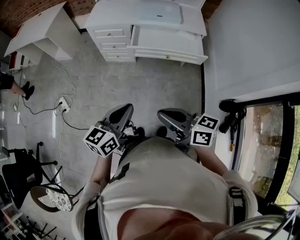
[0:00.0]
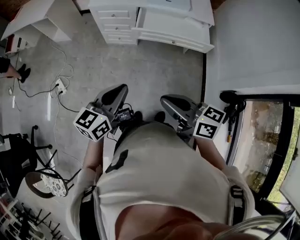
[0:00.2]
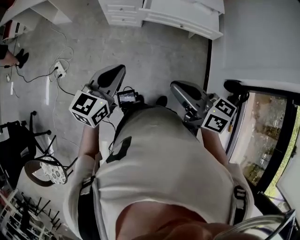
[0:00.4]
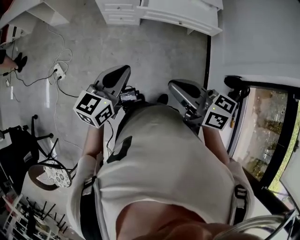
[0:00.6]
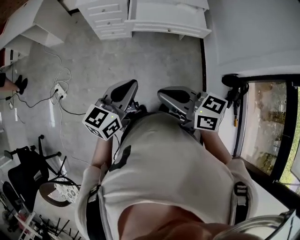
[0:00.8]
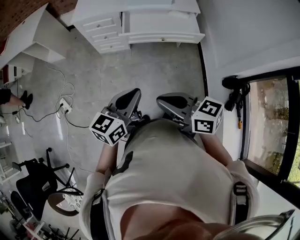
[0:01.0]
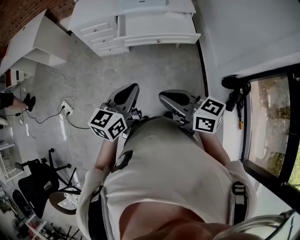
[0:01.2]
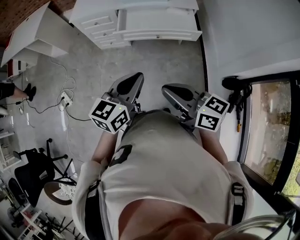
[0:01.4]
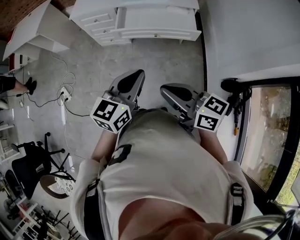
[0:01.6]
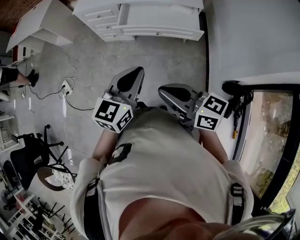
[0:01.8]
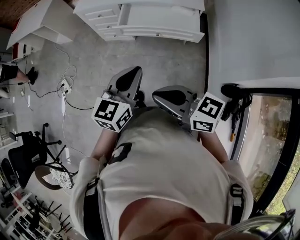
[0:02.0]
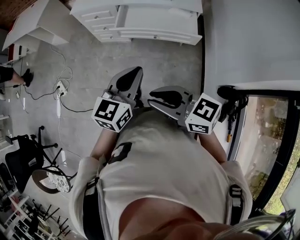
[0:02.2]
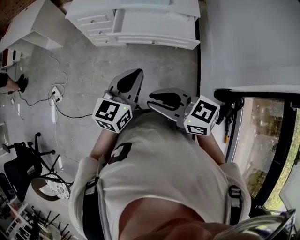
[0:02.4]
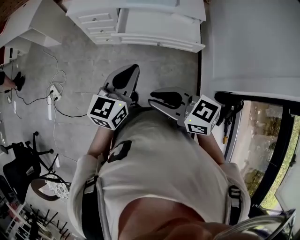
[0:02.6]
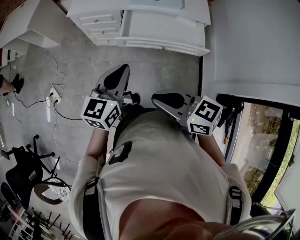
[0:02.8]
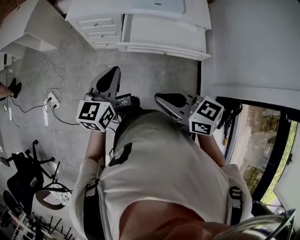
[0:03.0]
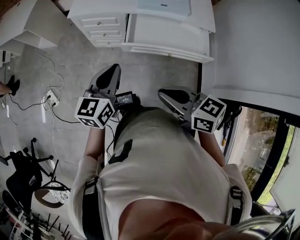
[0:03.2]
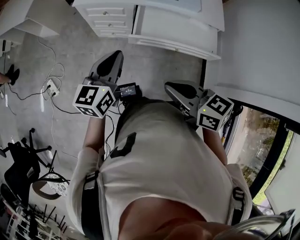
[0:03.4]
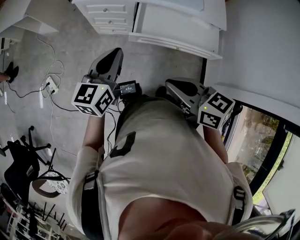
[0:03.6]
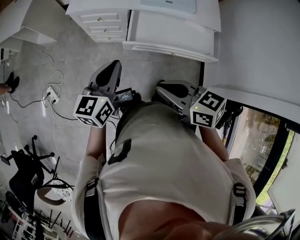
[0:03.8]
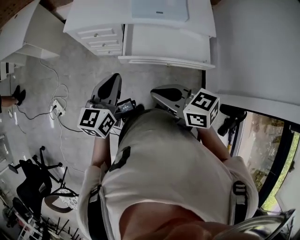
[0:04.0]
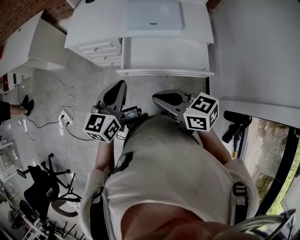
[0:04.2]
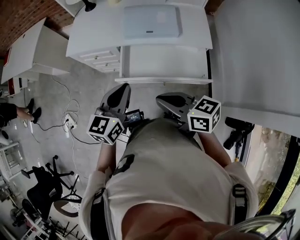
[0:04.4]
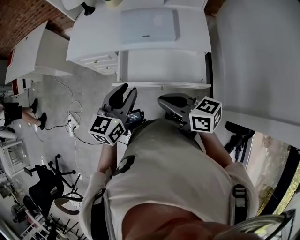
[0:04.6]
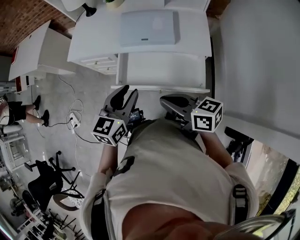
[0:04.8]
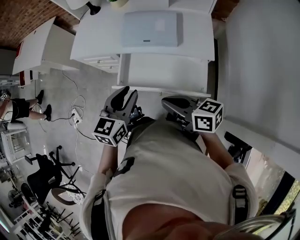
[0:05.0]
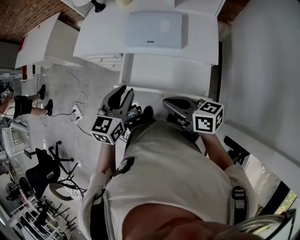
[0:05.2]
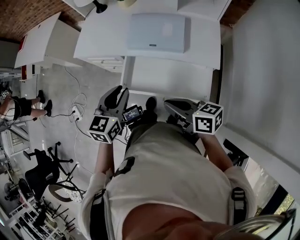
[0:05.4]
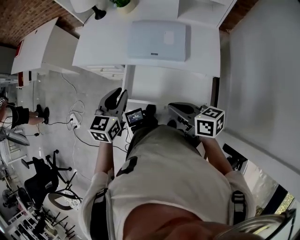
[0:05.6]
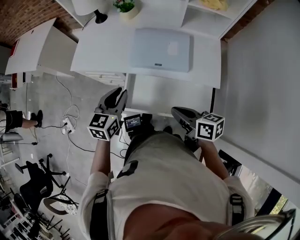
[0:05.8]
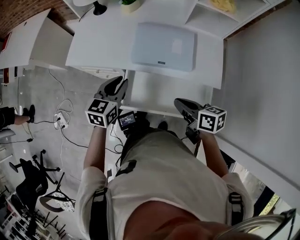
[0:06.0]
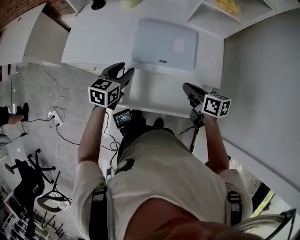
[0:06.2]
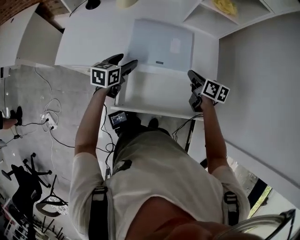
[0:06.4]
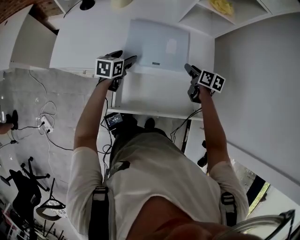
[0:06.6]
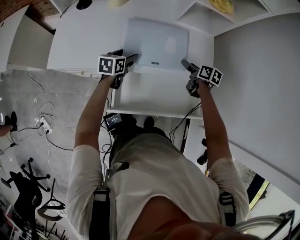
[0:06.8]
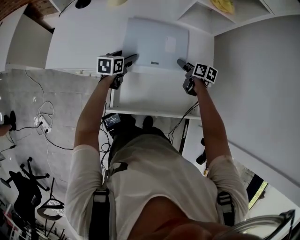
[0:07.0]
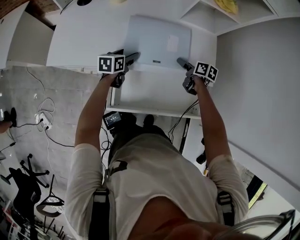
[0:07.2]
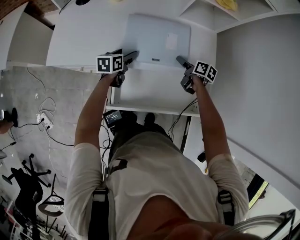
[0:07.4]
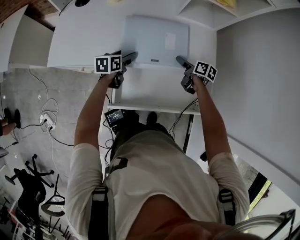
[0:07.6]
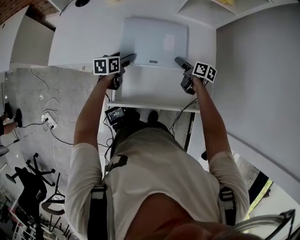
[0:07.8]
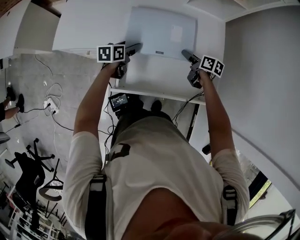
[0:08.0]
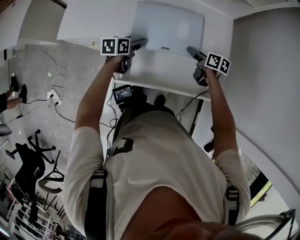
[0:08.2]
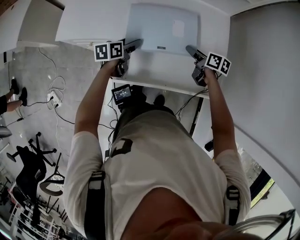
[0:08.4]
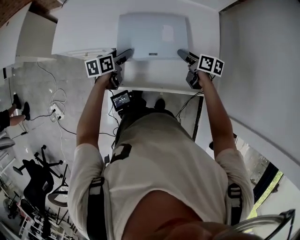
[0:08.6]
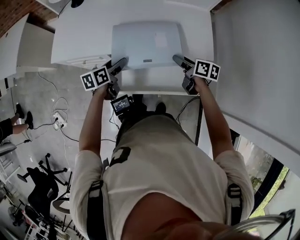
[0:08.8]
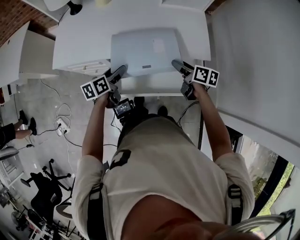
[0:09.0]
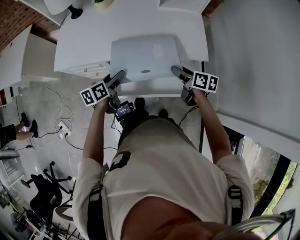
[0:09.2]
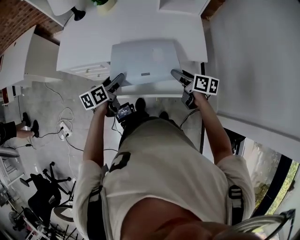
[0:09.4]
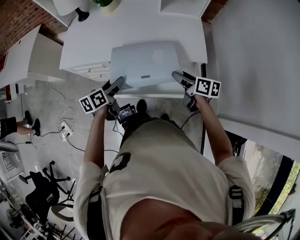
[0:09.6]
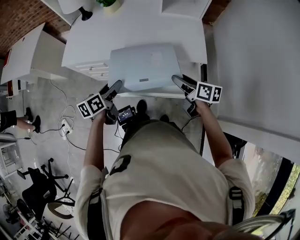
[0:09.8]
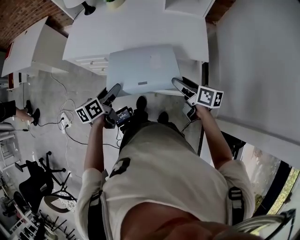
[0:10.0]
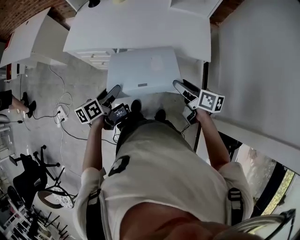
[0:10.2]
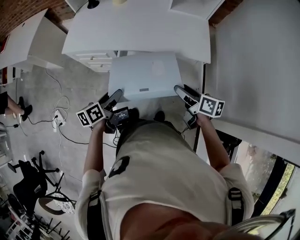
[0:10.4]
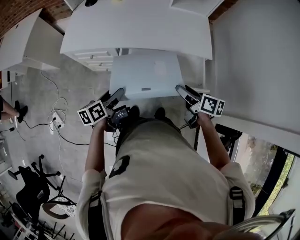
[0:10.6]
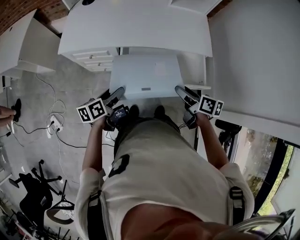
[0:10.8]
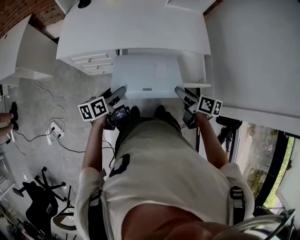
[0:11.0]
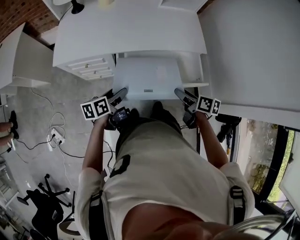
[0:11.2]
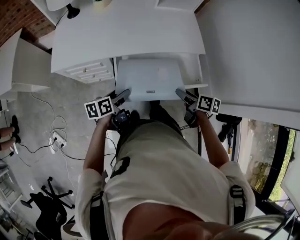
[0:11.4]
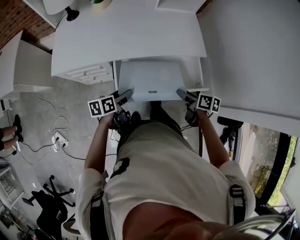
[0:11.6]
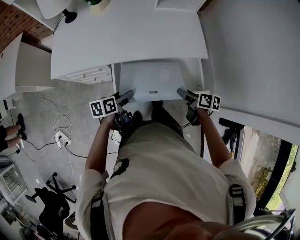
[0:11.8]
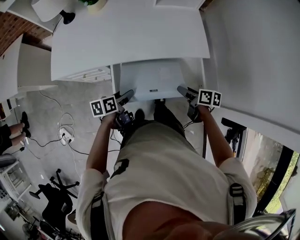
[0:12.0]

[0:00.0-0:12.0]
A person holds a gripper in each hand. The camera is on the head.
0.0 to 1.6 s: The left gripper is displaced to the right and forward by some 15 cm; the right gripper travels to the right by approximately 10 cm.
1.6 to 3.0 s: Both grippers travel together forward and to the left, some 20 cm.
3.0 to 4.4 s: The right gripper goes roughly 20 cm forward and to the right, while the left gripper heads to the right and forward, covering approximately 15 cm.
4.4 to 6.0 s: The right gripper travels forward, to the right and downward by roughly 20 cm, and rotates roughly 20 degrees. The left gripper heads forward, covering some 20 cm.
6.0 to 7.6 s: The right gripper moves forward, downward and to the right, about 25 cm, changes its angle by about 30 degrees, and opens, while the left gripper is displaced downward and forward by some 20 cm, changes its angle by approximately 30 degrees, and opens its fingers.
7.6 to 9.0 s: The grippers both shift backward and upward by approximately 15 cm.
9.0 to 10.4 s: The left gripper goes approximately 20 cm backward. The right gripper heads backward and upward, covering roughly 15 cm.
10.4 to 12.0 s: The left gripper heads forward and downward, covering roughly 15 cm, and rotates roughly 30 degrees; the right gripper travels downward by about 10 cm, and turns by some 20 degrees.

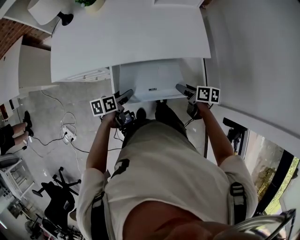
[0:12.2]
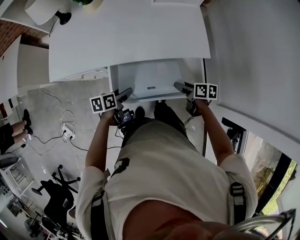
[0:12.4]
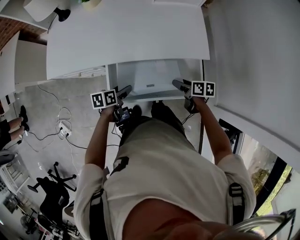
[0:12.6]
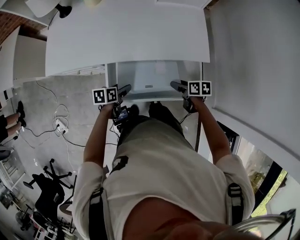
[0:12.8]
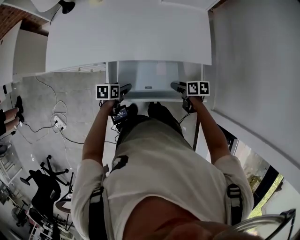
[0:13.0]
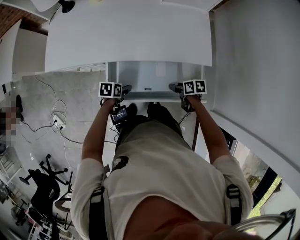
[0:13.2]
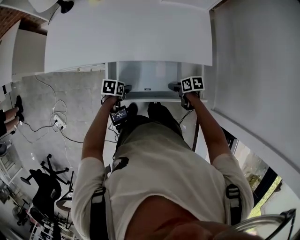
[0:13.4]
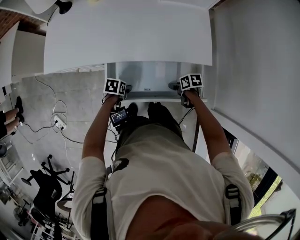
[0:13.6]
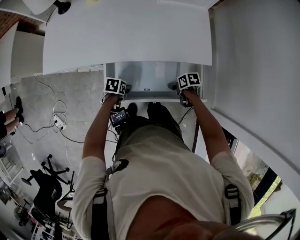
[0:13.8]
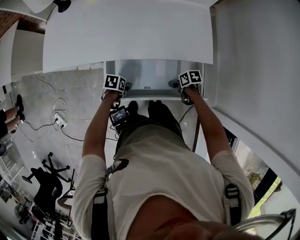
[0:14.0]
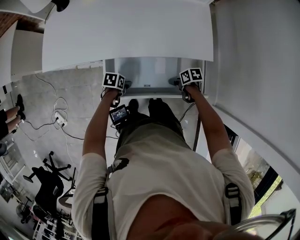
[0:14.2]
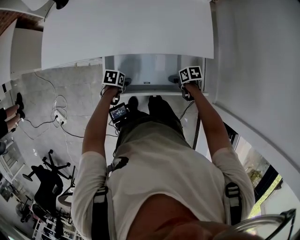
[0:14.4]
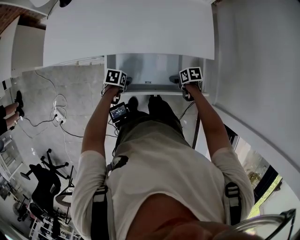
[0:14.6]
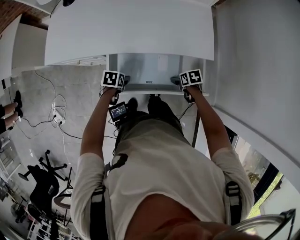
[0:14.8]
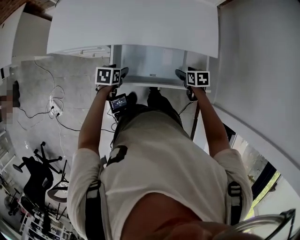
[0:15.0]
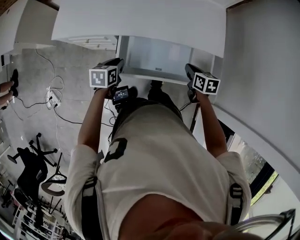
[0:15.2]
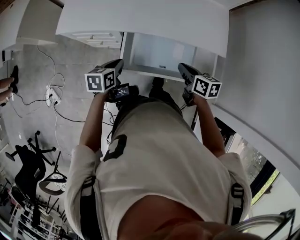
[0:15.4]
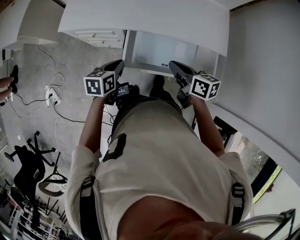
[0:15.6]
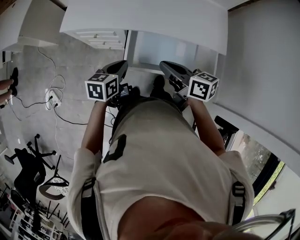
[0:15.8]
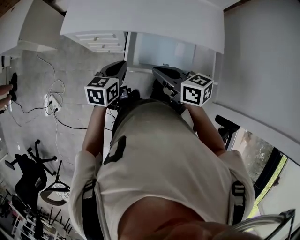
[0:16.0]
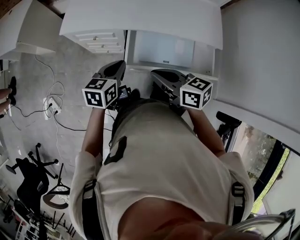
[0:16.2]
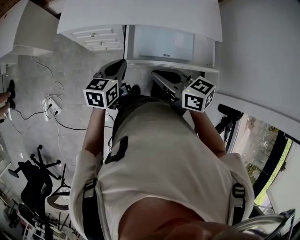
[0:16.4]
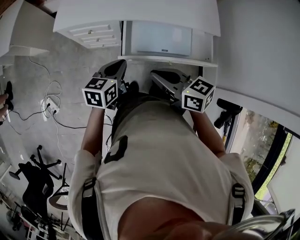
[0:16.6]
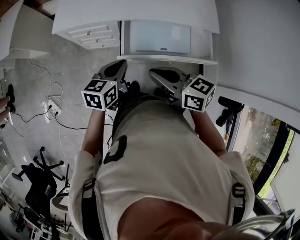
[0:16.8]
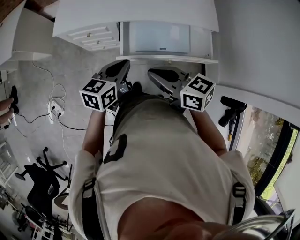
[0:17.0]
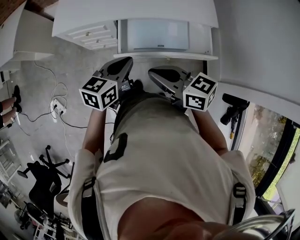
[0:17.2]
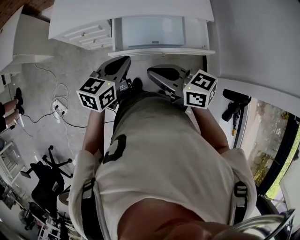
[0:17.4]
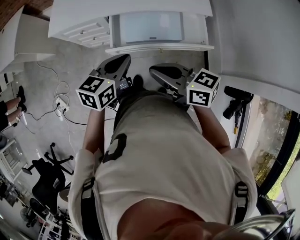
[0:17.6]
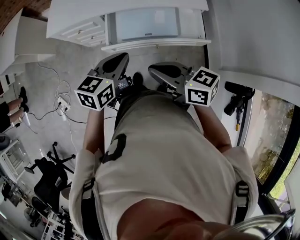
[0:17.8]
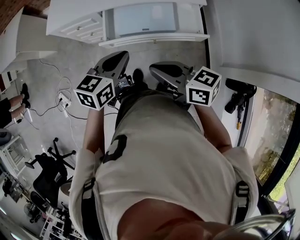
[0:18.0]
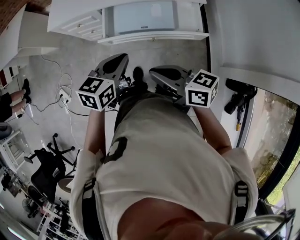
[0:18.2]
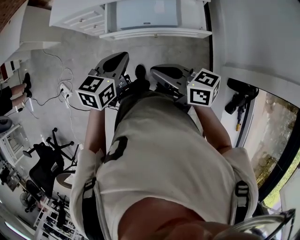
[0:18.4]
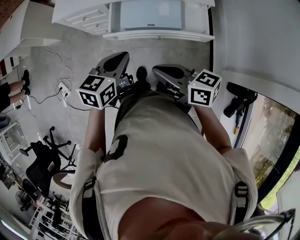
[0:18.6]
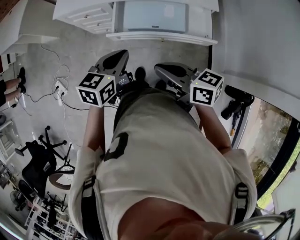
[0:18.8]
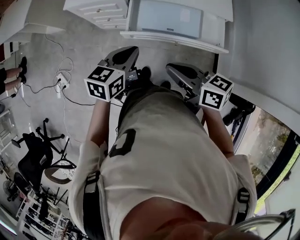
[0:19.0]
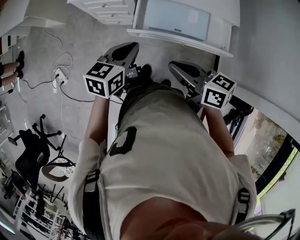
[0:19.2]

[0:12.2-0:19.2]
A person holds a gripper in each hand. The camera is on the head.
12.2 to 13.6 s: Both grippers travel together downward, about 10 cm. The left gripper swivels roughly 30 degrees, while the right gripper changes its angle by about 30 degrees.
13.6 to 15.0 s: The left gripper heads upward, covering approximately 5 cm. Meanwhile the right gripper shifts by roughly 5 cm, and changes its angle by approximately 20 degrees.
15.0 to 16.4 s: The right gripper is displaced to the left and upward by some 40 cm, tips its fingers upward by some 40 degrees, and closes its fingers; the left gripper is displaced upward, backward and to the left by approximately 20 cm, turns by approximately 30 degrees, and closes its fingers.
16.4 to 17.8 s: The left gripper travels to the right, backward and upward by roughly 15 cm. The right gripper goes approximately 15 cm backward and to the right.
17.8 to 19.2 s: The right gripper goes backward and returns, about 5 cm each way. Meanwhile the left gripper heads to the left, covering approximately 10 cm.

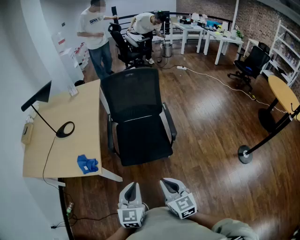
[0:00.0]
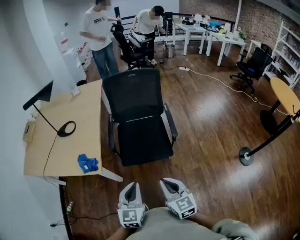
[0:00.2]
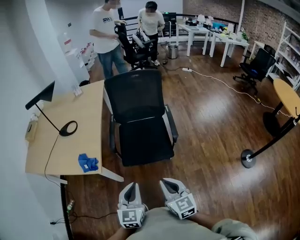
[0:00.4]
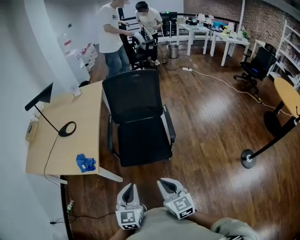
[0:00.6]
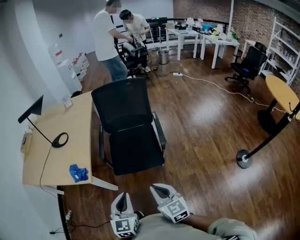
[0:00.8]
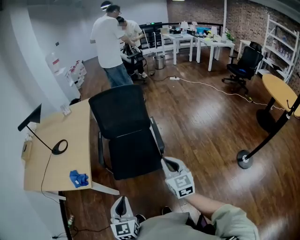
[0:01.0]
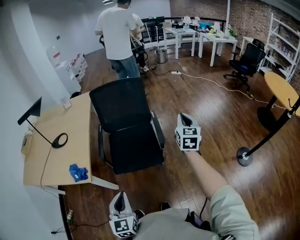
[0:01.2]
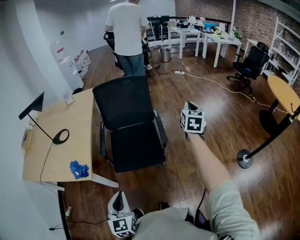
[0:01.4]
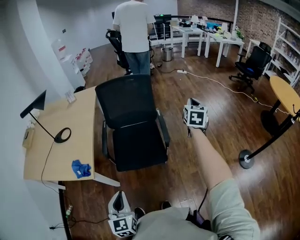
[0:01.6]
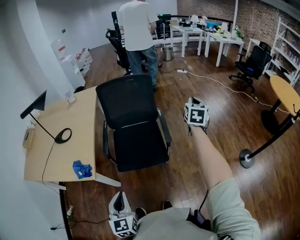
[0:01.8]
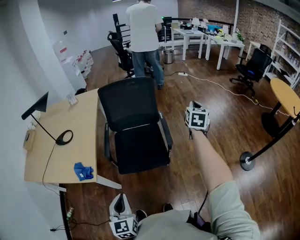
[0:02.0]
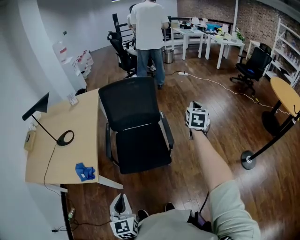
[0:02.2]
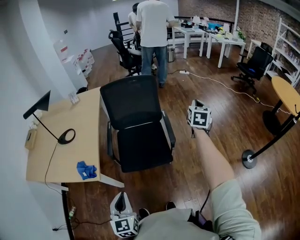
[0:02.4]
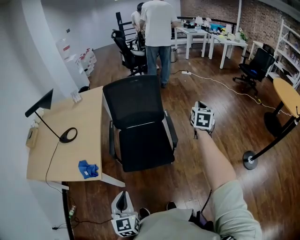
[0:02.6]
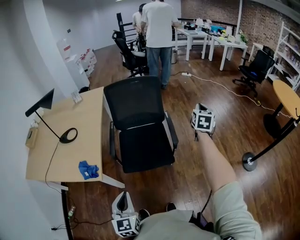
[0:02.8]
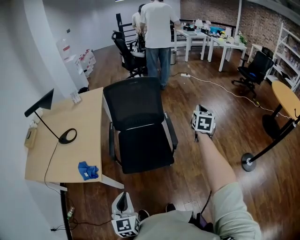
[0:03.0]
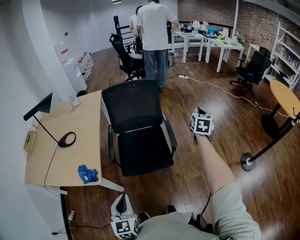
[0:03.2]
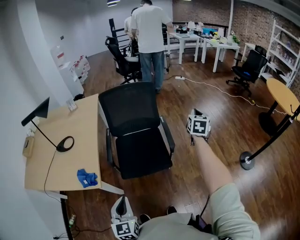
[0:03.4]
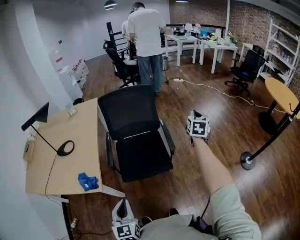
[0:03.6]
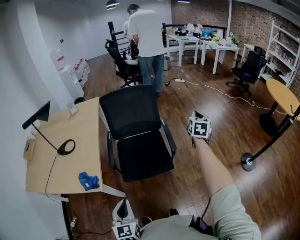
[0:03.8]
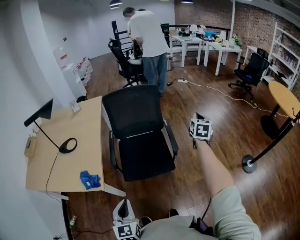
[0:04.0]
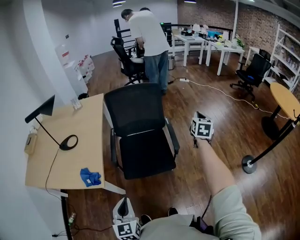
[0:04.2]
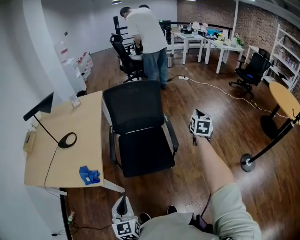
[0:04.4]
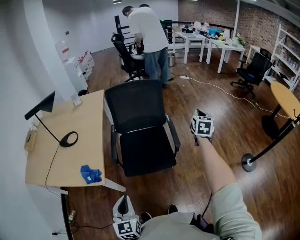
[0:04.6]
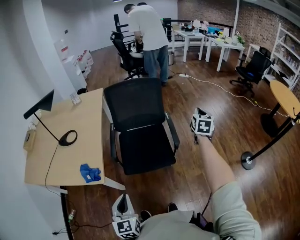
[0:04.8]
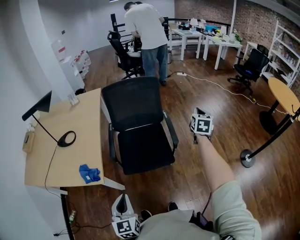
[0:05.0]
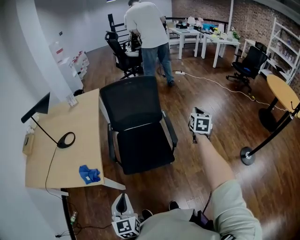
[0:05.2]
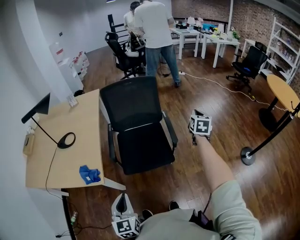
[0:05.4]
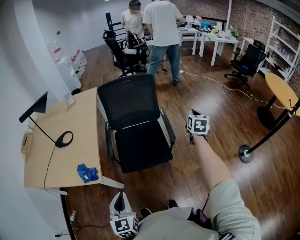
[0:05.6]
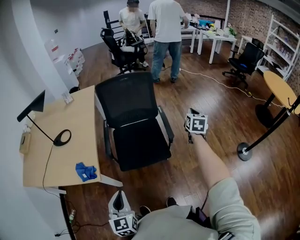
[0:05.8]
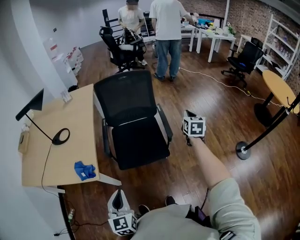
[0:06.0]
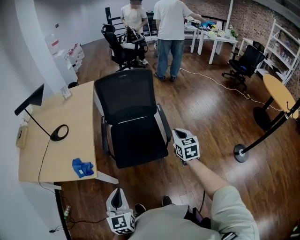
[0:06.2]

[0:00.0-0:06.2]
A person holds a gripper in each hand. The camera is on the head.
0.0 to 1.6 s: The right gripper shifts about 50 cm to the right and forward, and changes its angle by roughly 40 degrees.
1.6 to 3.2 s: The left gripper shifts some 5 cm to the left.
3.2 to 4.6 s: There are only small adjustments of the grippers.
4.6 to 6.2 s: The right gripper moves backward, to the left and downward, about 20 cm, and rotates some 20 degrees.
